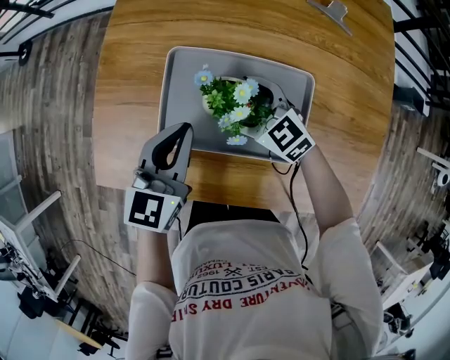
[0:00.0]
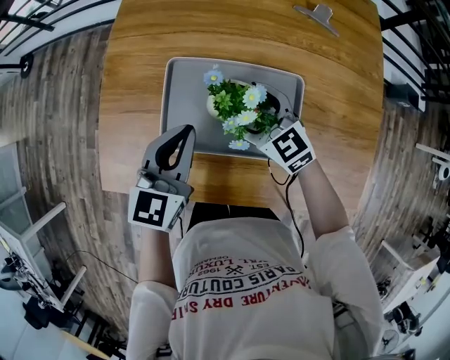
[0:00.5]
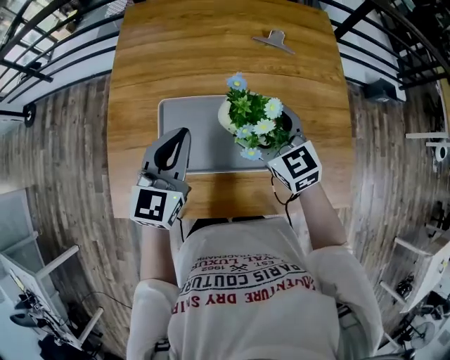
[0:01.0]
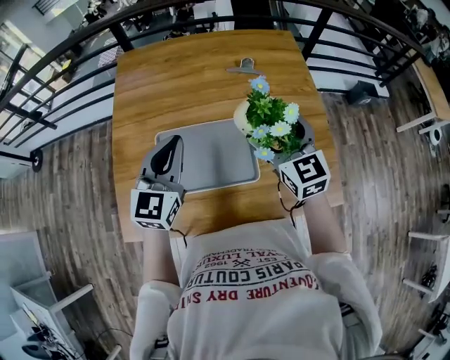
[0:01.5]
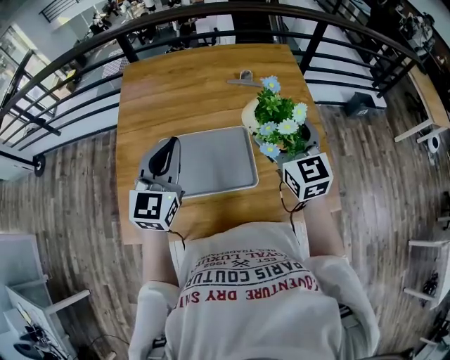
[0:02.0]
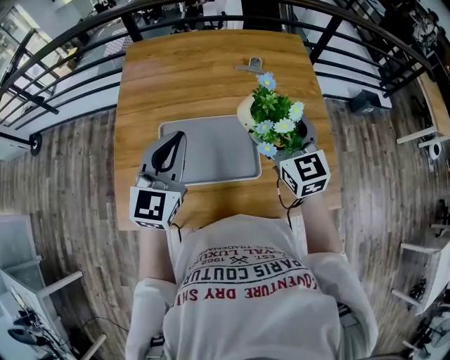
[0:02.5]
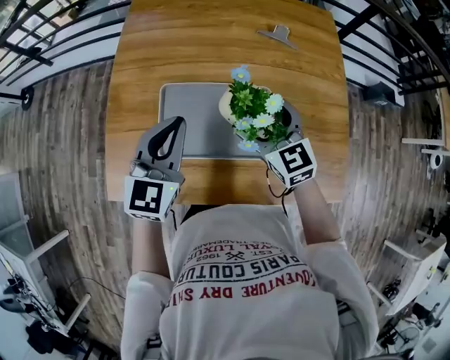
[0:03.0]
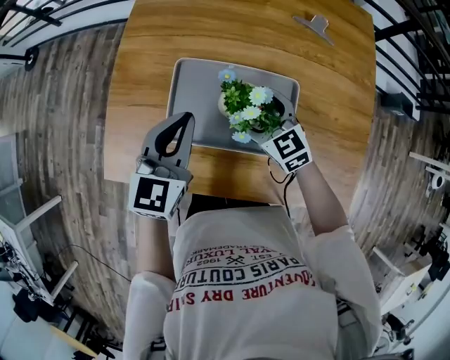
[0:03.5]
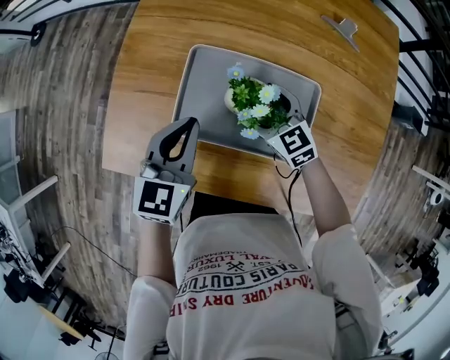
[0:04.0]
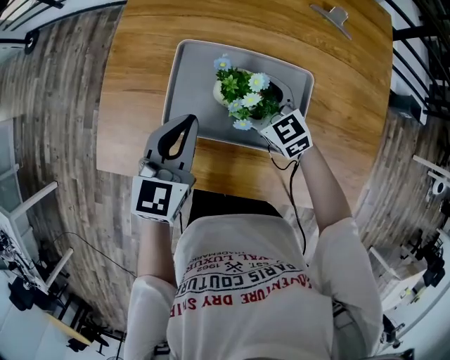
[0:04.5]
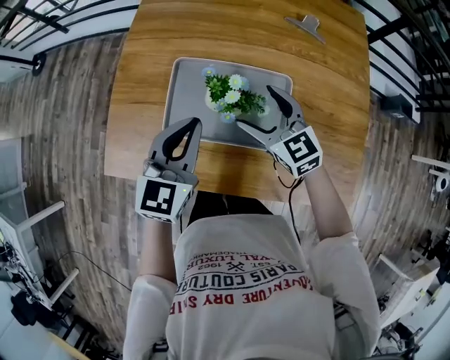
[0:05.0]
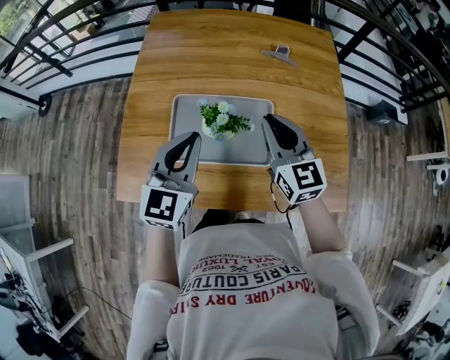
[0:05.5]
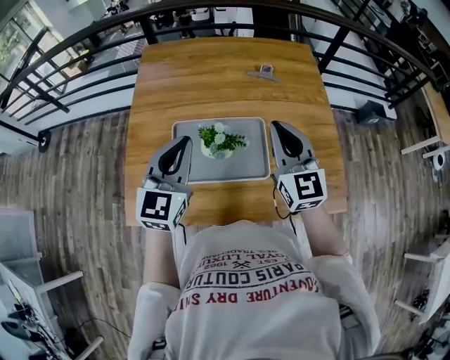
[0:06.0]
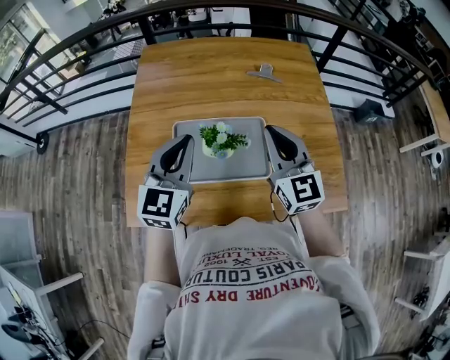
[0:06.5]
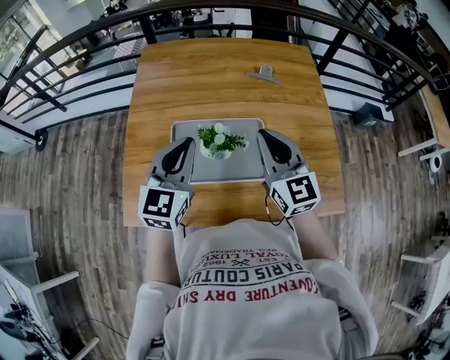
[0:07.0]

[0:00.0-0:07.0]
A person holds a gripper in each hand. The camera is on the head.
0:00.0 to 0:02.0: The left gripper heads upward, covering roughly 15 cm, and rotates roughly 20 degrees. The right gripper moves upward, roughly 25 cm, and changes its angle by some 50 degrees.
0:02.0 to 0:03.5: The right gripper shifts approximately 30 cm downward and to the left, and turns by about 40 degrees. The left gripper is displaced downward and to the left by some 15 cm, and turns by some 20 degrees.
0:03.5 to 0:05.0: The right gripper ends up roughly 5 cm from where it was.
0:05.0 to 0:07.0: The left gripper travels upward by approximately 10 cm, while the right gripper goes some 15 cm upward, swivels some 30 degrees, and closes.

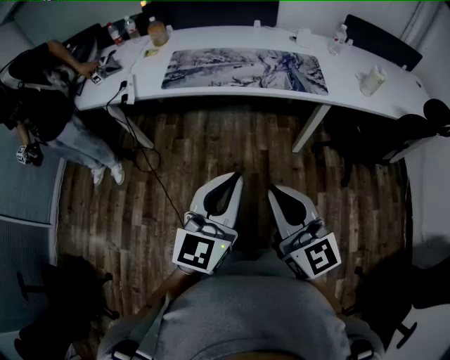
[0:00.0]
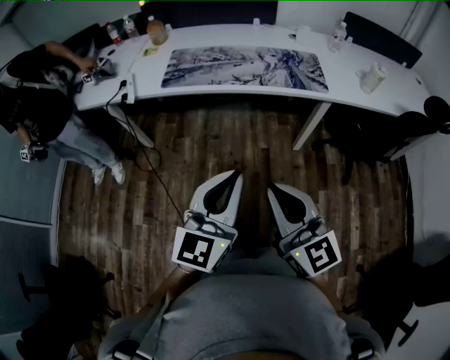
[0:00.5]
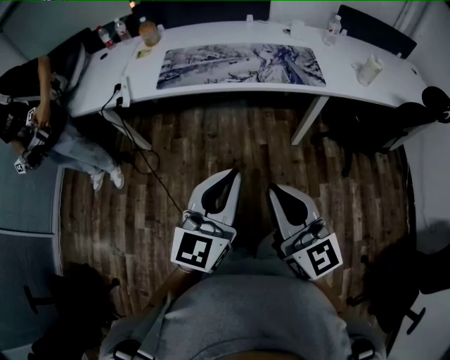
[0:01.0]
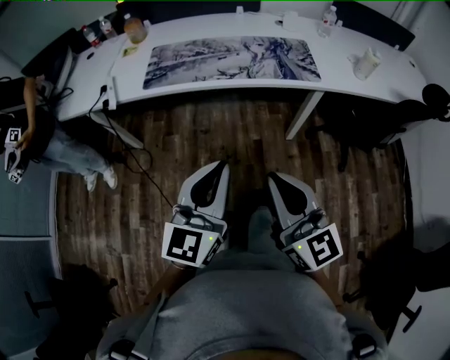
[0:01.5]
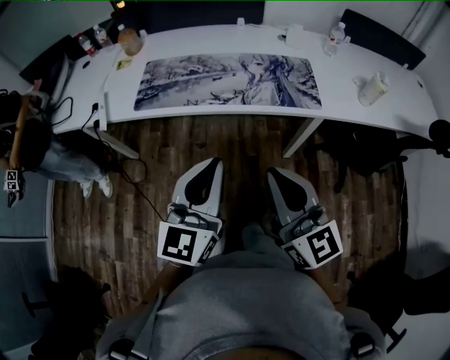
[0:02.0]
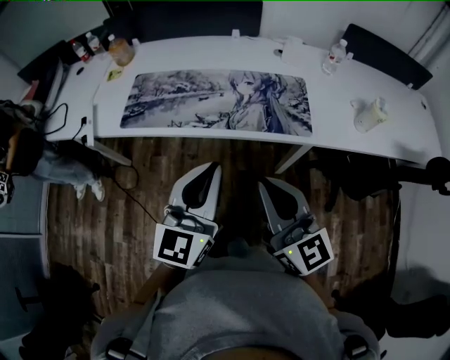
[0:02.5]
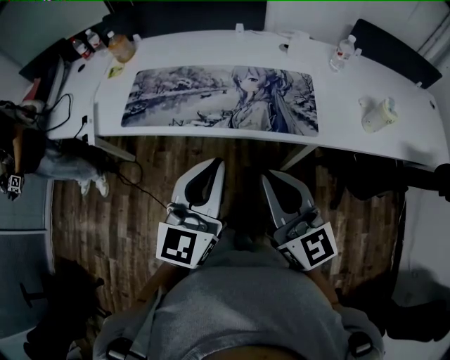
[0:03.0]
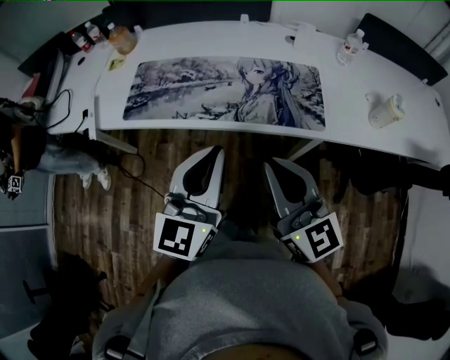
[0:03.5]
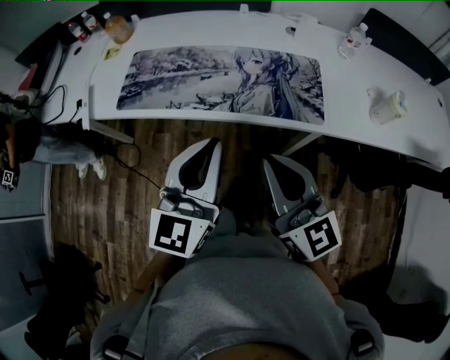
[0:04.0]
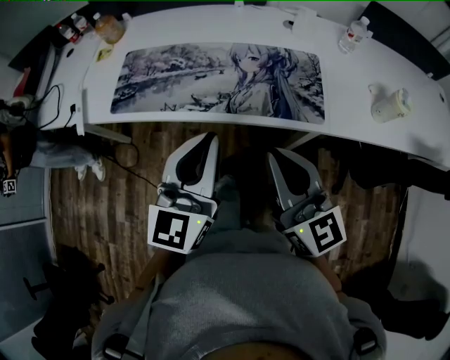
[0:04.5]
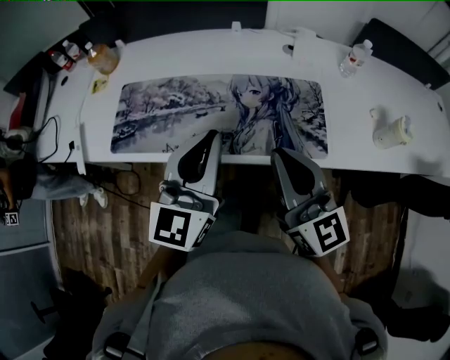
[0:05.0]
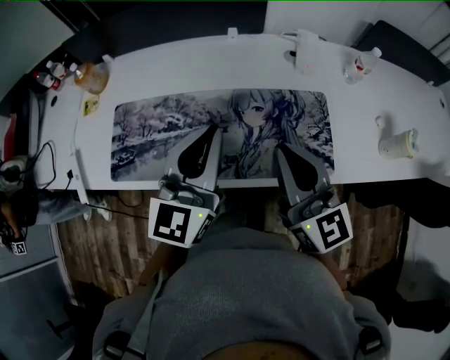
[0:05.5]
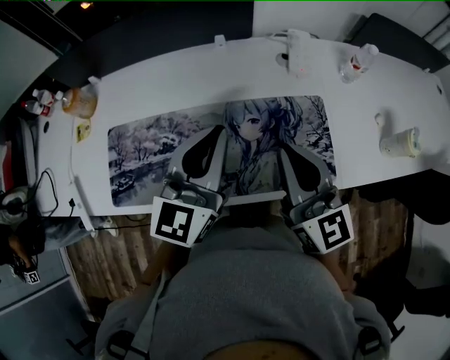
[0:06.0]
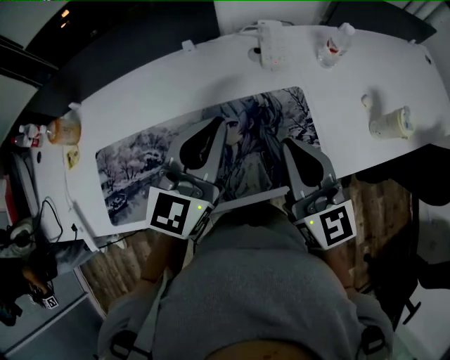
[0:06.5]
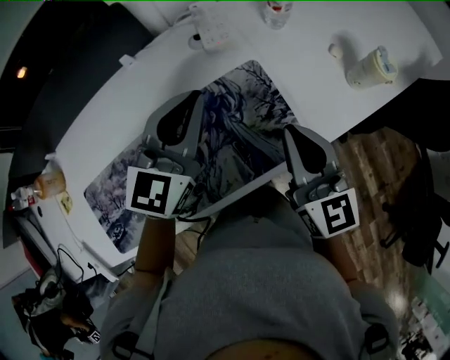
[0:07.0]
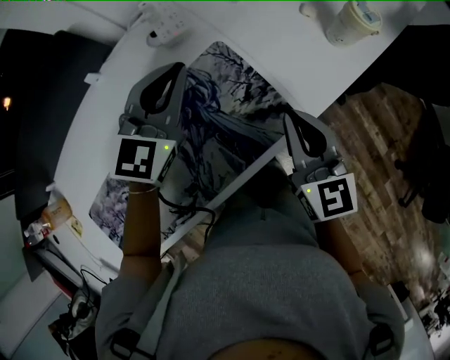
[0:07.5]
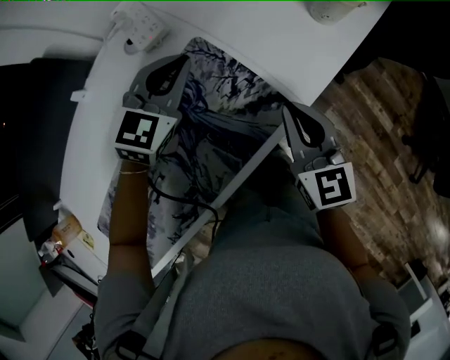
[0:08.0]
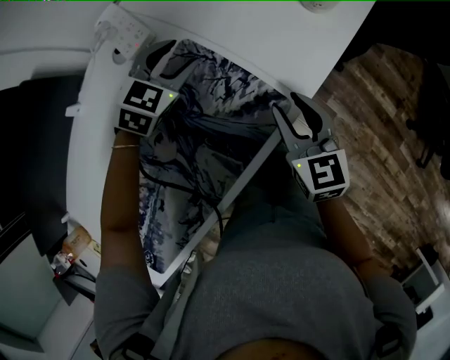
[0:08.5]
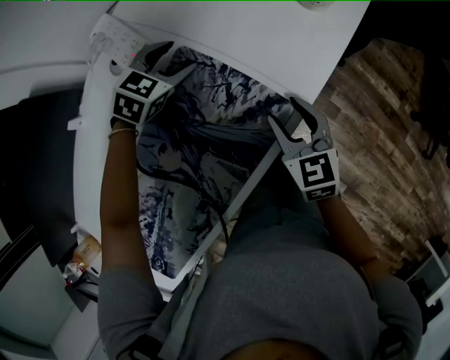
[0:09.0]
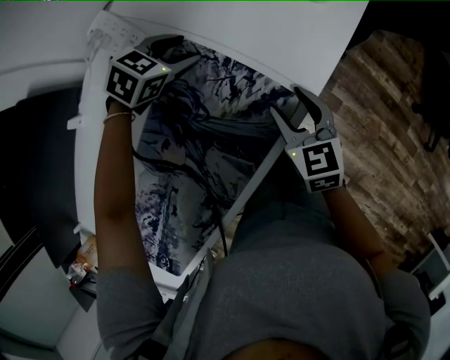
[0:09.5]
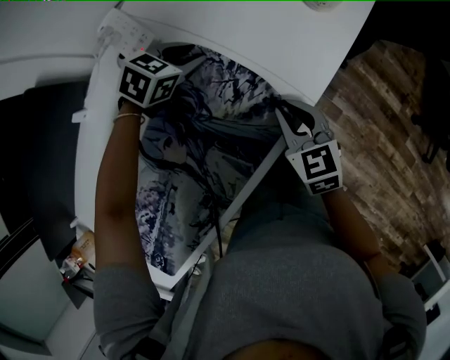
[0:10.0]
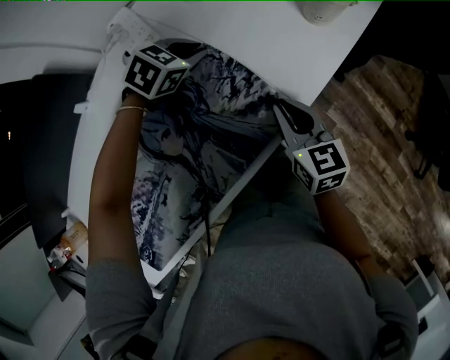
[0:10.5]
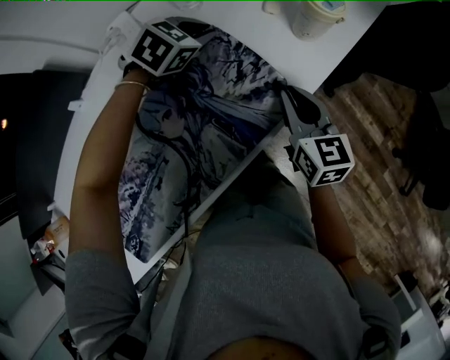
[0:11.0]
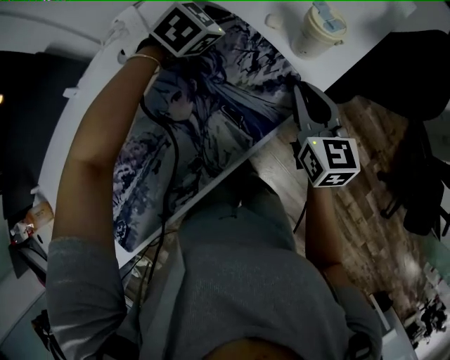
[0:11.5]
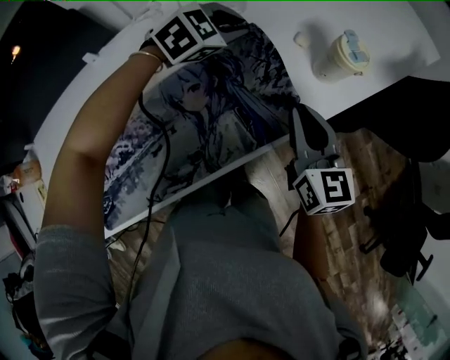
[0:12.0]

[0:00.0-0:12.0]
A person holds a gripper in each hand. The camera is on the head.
0:00.0 to 0:02.0: The two grippers go about 15 cm forward.
0:02.0 to 0:04.0: The grippers both shift forward and to the right by roughly 15 cm.
0:04.0 to 0:06.0: Both grippers travel together forward, some 30 cm.
0:06.0 to 0:08.0: The right gripper ends up some 30 cm from where it was, and changes its angle by some 50 degrees. The left gripper shifts by approximately 35 cm, and tips its fingers downward by about 30 degrees.
0:08.0 to 0:10.0: The right gripper heads downward, covering roughly 10 cm, and opens and closes again. The left gripper moves downward and forward, approximately 15 cm, changes its angle by some 30 degrees, and opens.
0:10.0 to 0:12.0: The grippers both shift upward by roughly 15 cm. The right gripper rotates roughly 30 degrees. The left gripper changes its angle by some 30 degrees.

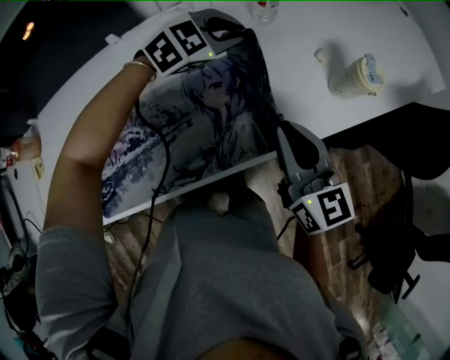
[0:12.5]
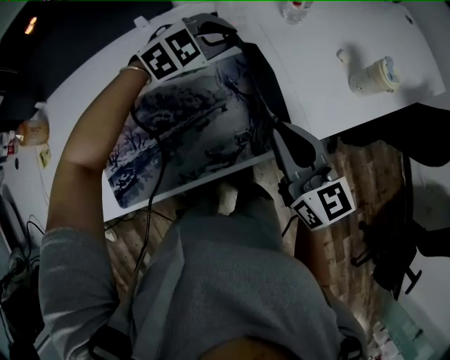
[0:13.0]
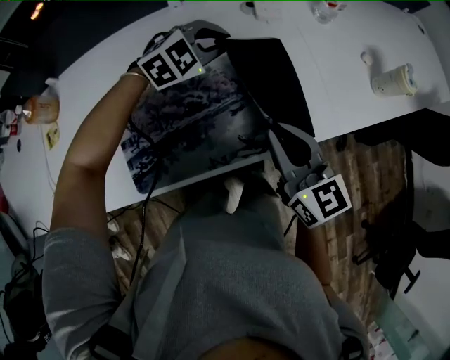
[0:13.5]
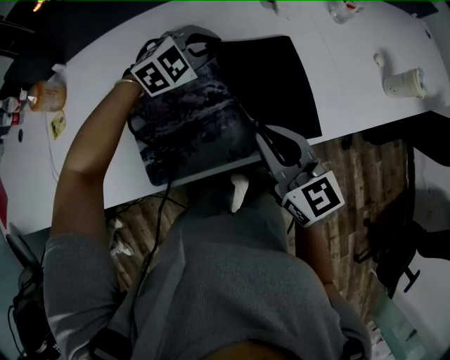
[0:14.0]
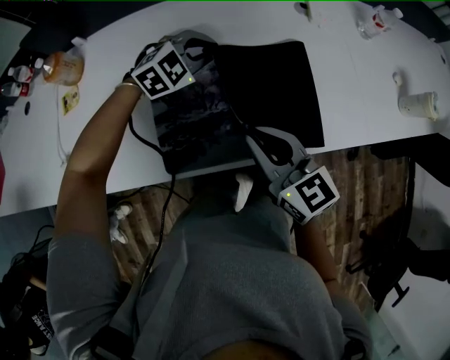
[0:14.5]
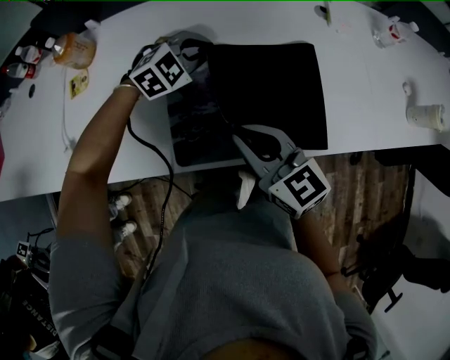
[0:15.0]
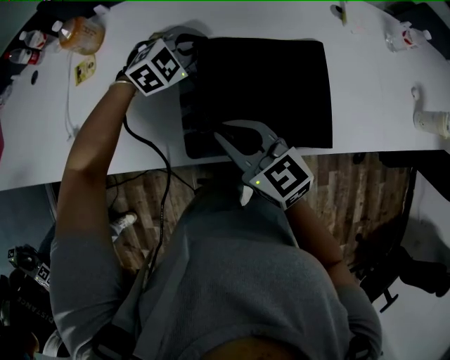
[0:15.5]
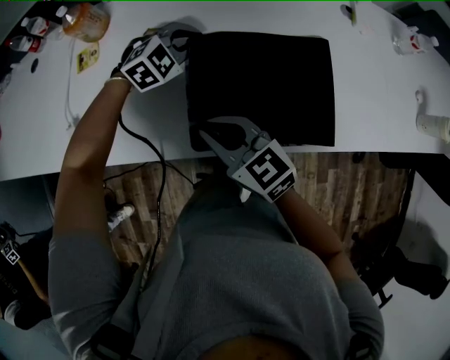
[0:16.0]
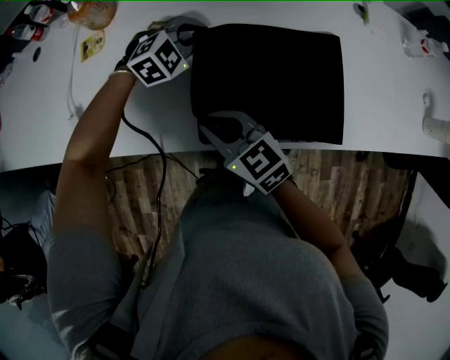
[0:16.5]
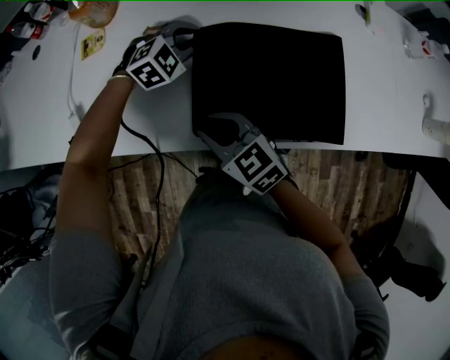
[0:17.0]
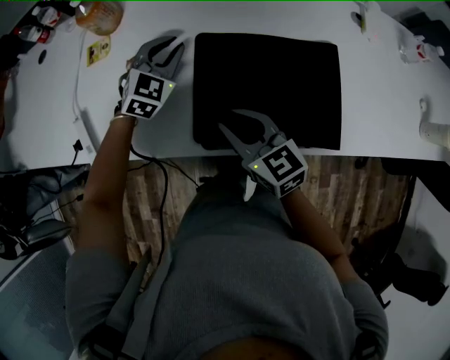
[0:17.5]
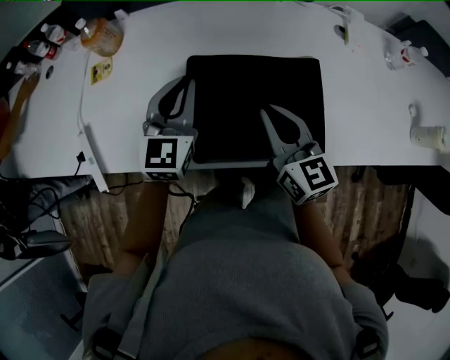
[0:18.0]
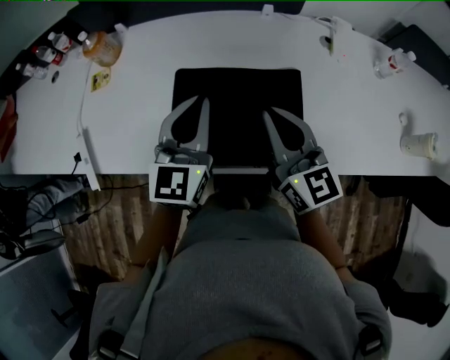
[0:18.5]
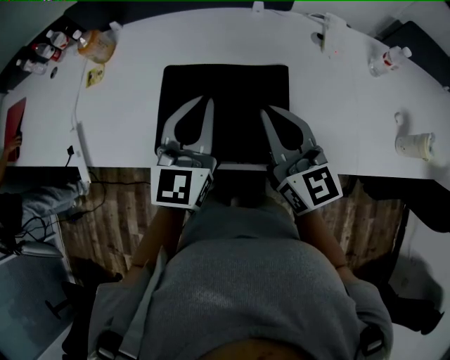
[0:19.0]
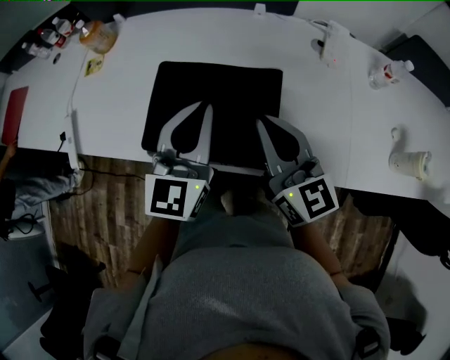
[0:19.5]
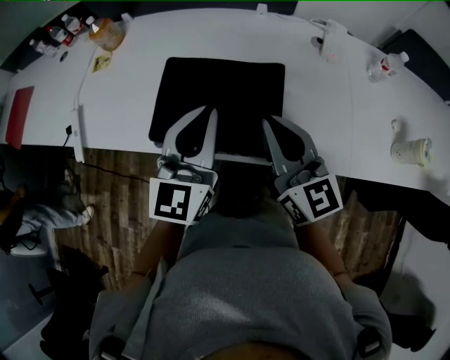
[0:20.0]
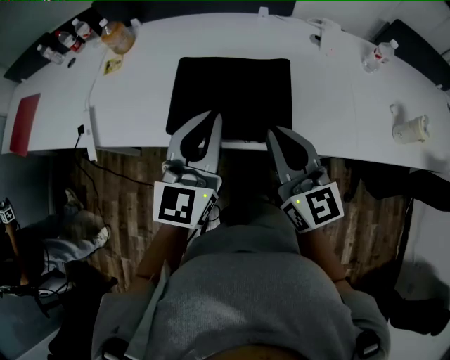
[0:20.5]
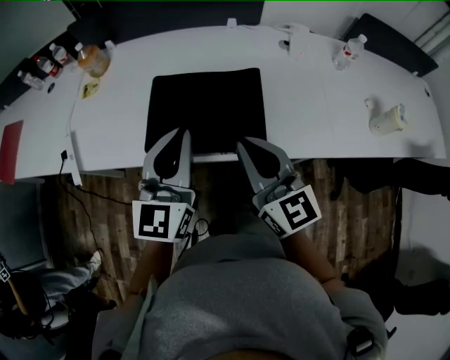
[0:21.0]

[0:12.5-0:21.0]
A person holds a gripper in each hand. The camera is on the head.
0:12.5 to 0:14.5: The two grippers go some 40 cm to the left and backward. The right gripper rotates some 30 degrees.
0:14.5 to 0:16.5: The grippers both shift to the left and downward by some 20 cm. The right gripper turns by approximately 30 degrees.
0:16.5 to 0:19.0: The right gripper moves to the right and upward, about 30 cm, and changes its angle by approximately 30 degrees, while the left gripper shifts some 30 cm upward, backward and to the right, and angles its fingers upward, by some 40 degrees.
0:19.0 to 0:21.0: The grippers both shift backward by some 10 cm.
